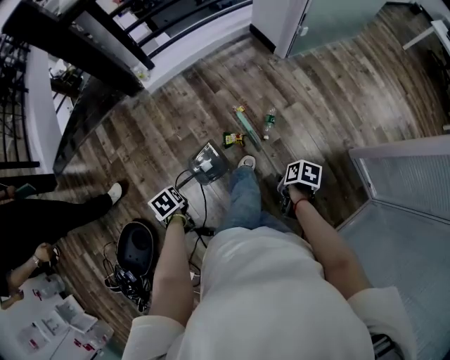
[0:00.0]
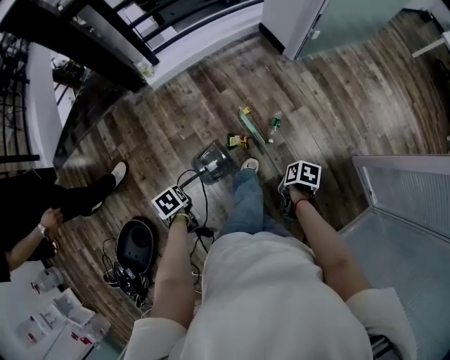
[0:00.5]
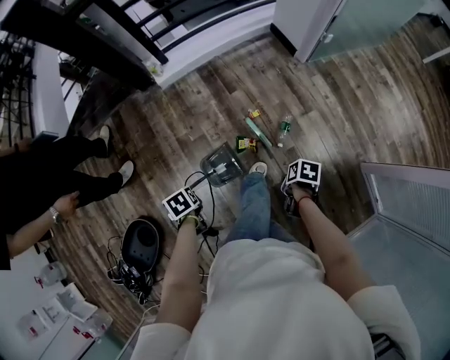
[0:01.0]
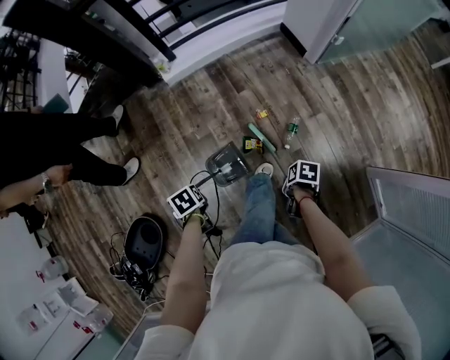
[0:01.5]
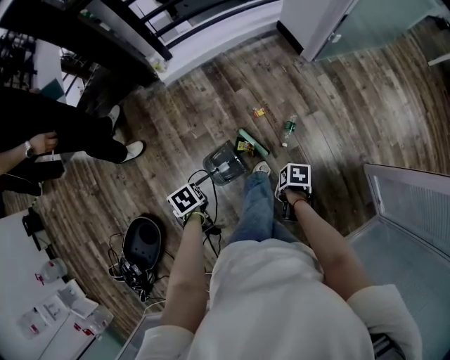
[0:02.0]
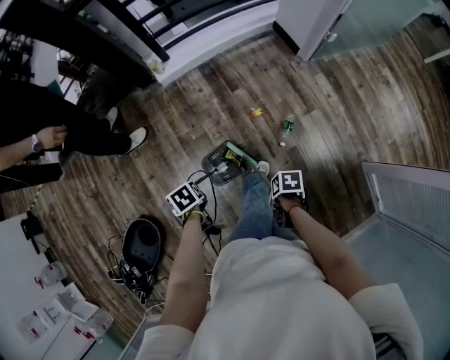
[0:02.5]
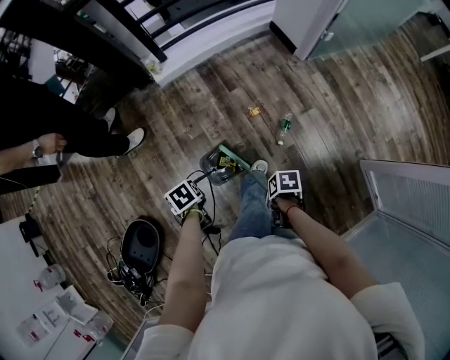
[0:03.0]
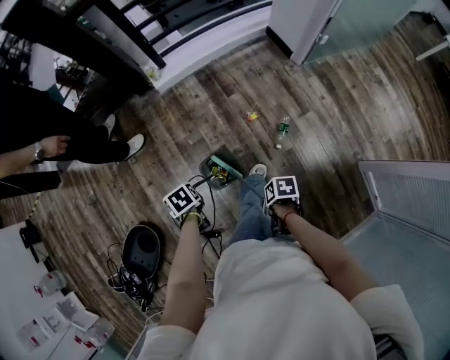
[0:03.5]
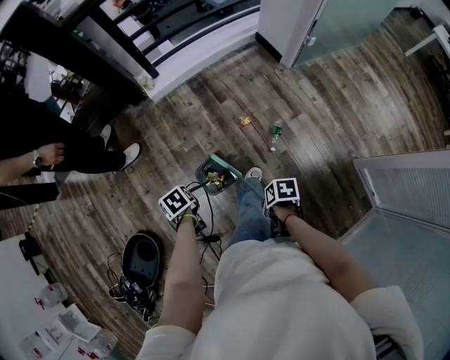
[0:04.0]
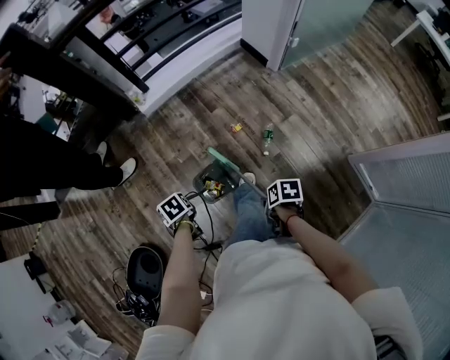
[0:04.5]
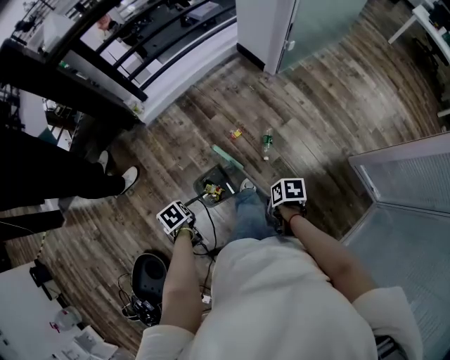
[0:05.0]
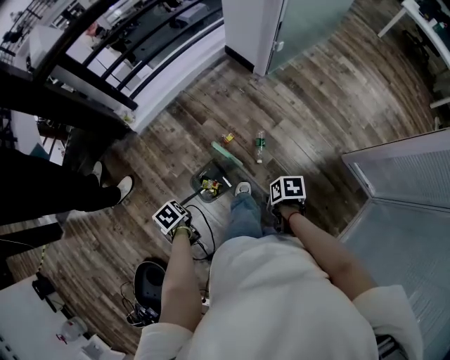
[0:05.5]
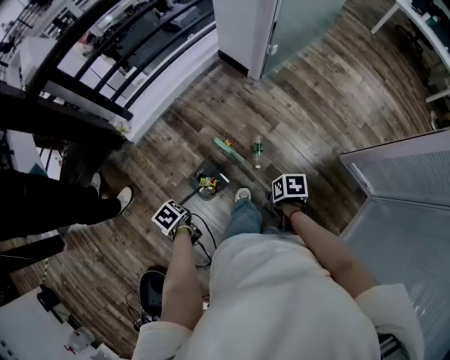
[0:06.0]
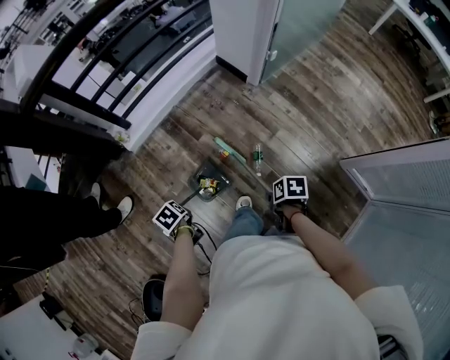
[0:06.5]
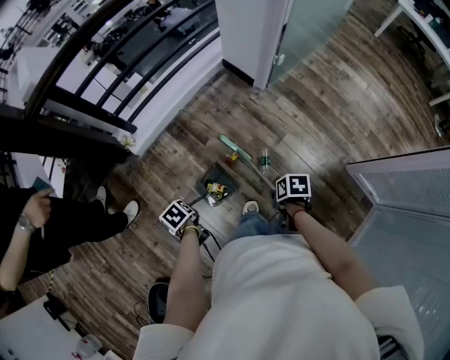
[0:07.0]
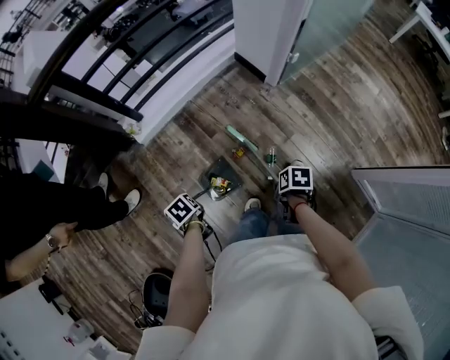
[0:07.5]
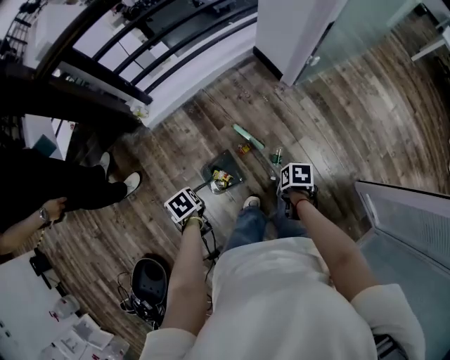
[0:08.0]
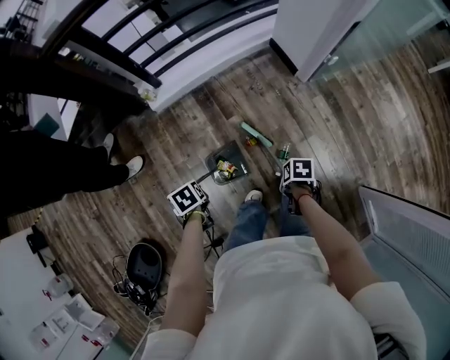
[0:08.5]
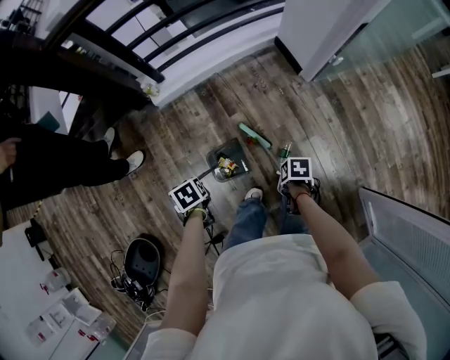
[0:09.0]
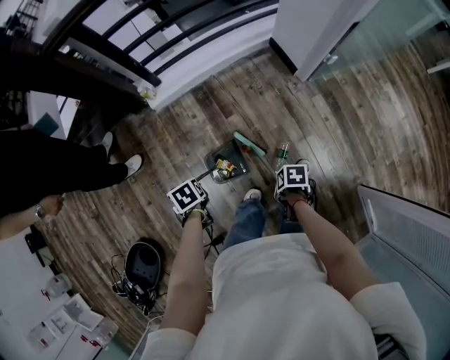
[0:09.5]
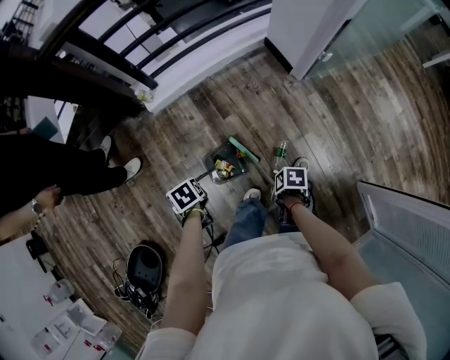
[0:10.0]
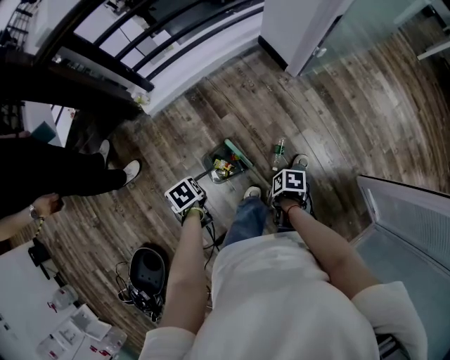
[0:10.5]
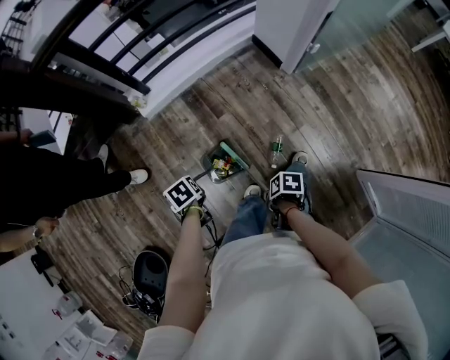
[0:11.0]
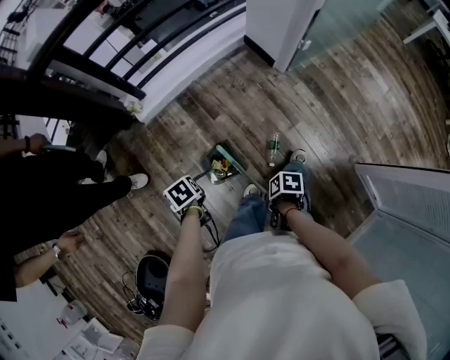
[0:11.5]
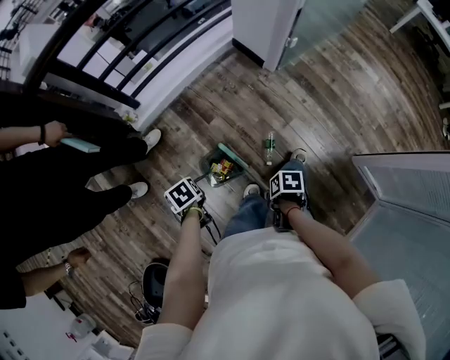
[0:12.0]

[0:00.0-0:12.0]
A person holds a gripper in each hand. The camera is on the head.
0:00.0 to 0:02.0: The left gripper shifts by roughly 10 cm.
0:04.0 to 0:06.0: The left gripper moves about 15 cm.
0:06.0 to 0:08.0: The left gripper changes place by some 10 cm.

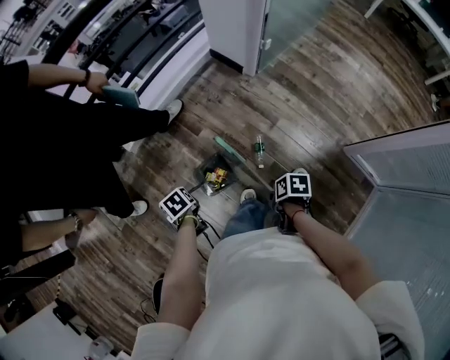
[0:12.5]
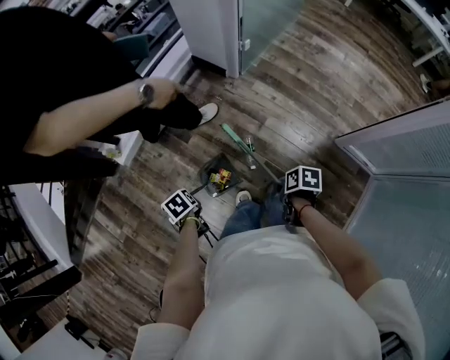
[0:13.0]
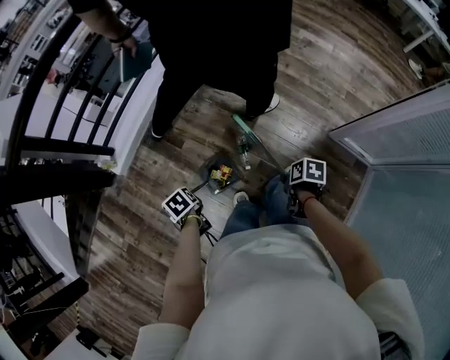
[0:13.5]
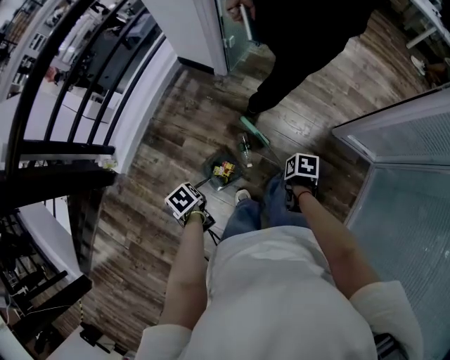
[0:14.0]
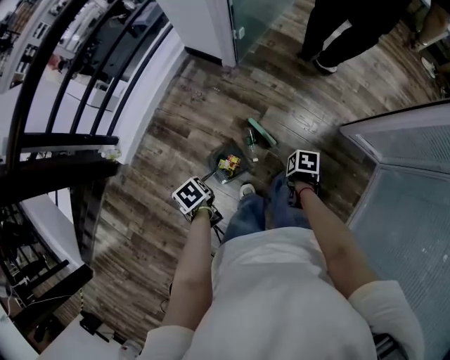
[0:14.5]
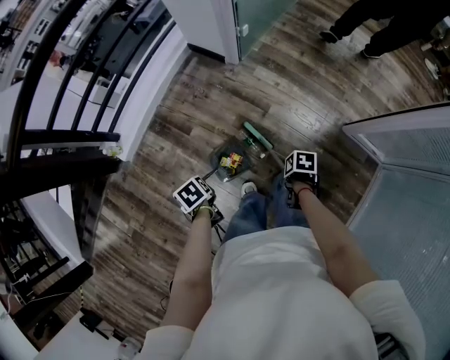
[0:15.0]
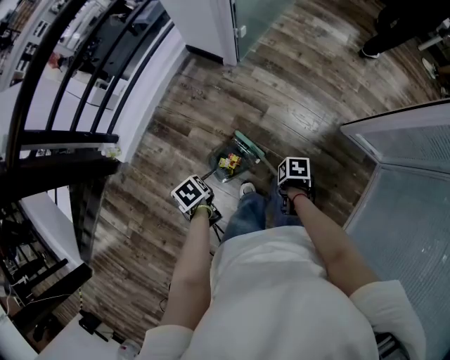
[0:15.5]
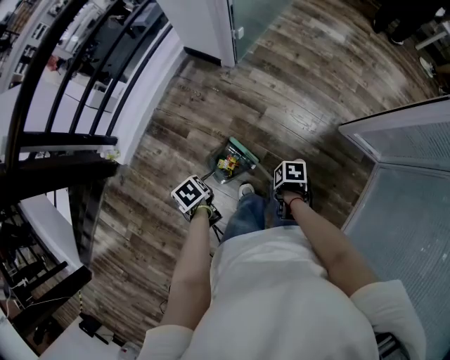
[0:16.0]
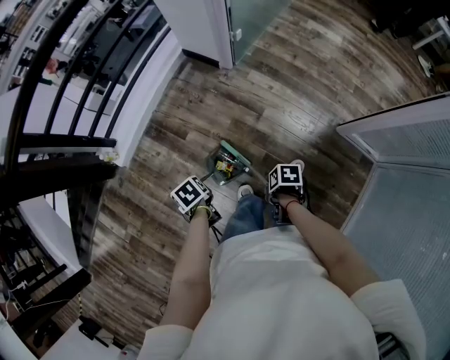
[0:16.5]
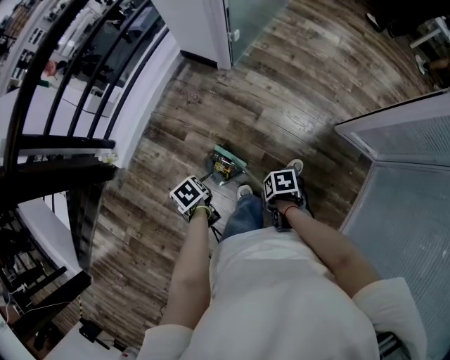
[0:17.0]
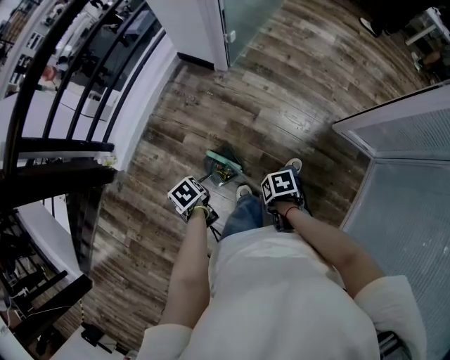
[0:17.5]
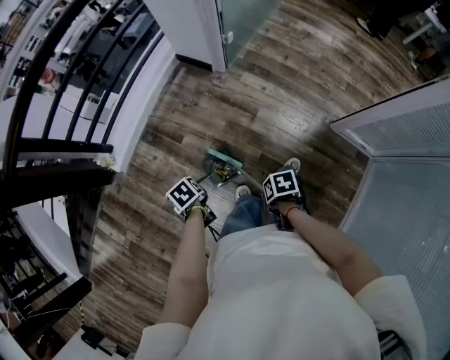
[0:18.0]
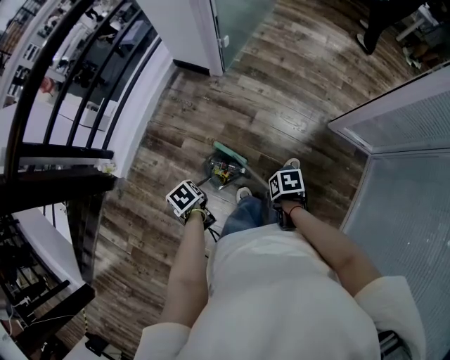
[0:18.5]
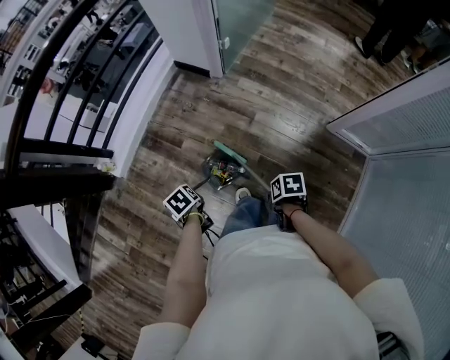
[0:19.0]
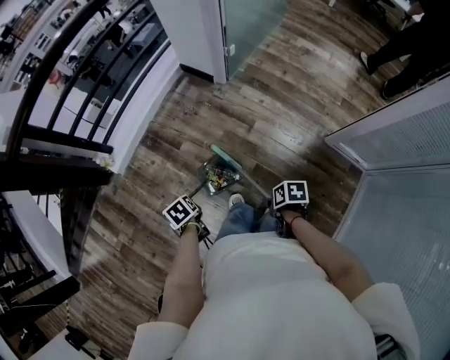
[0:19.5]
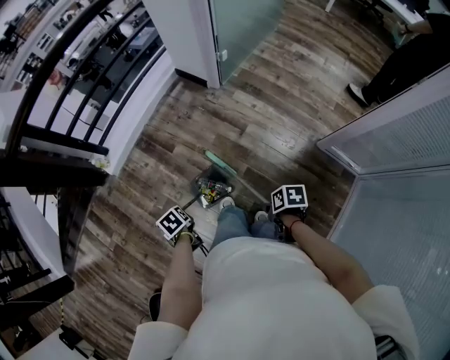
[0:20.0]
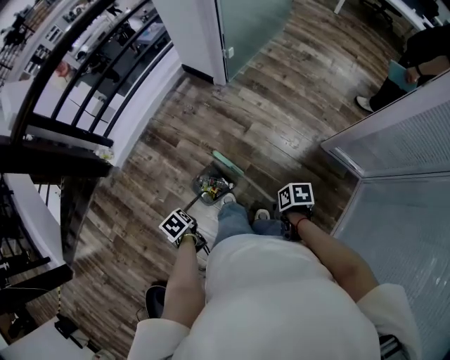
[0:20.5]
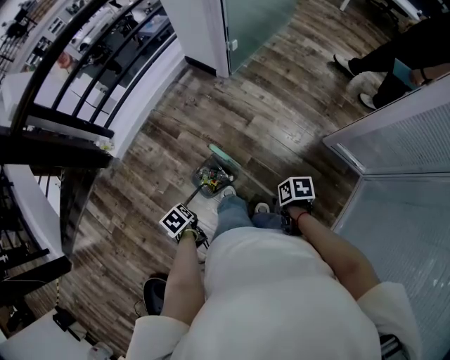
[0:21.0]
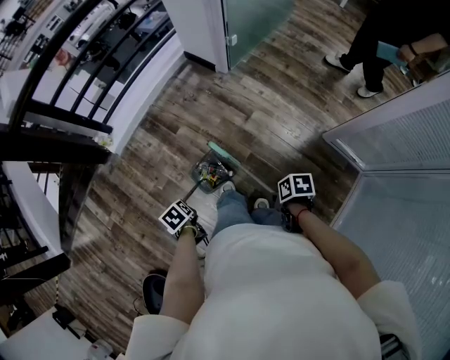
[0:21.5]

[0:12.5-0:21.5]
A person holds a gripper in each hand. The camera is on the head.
0:12.5 to 0:14.5: The left gripper changes place by approximately 15 cm.
0:17.0 to 0:19.5: The left gripper changes place by some 10 cm.
0:19.5 to 0:21.5: The left gripper ends up approximately 10 cm from where it was.

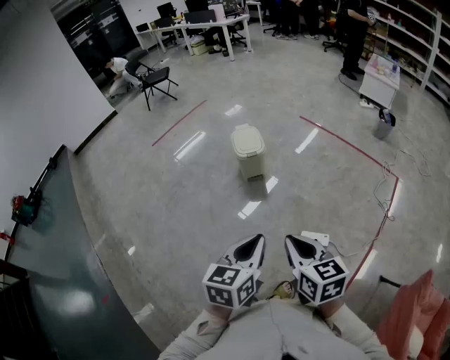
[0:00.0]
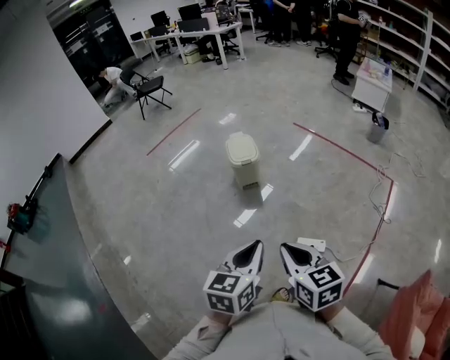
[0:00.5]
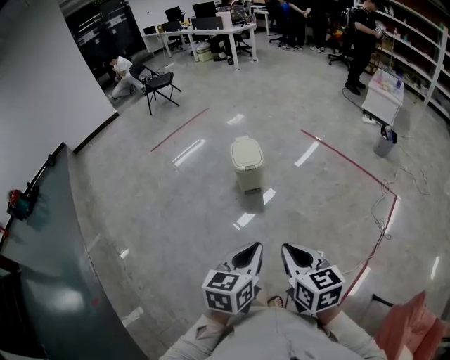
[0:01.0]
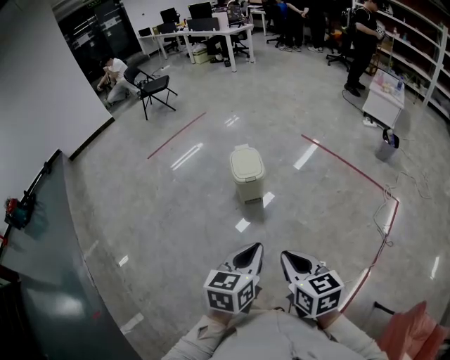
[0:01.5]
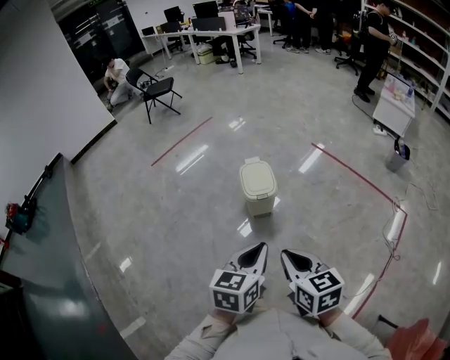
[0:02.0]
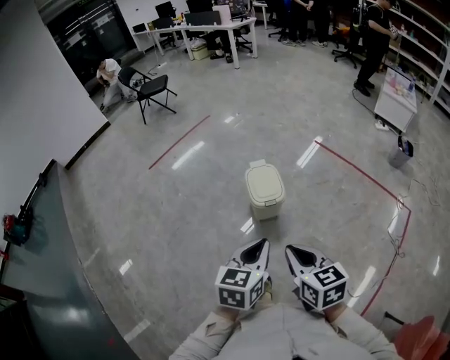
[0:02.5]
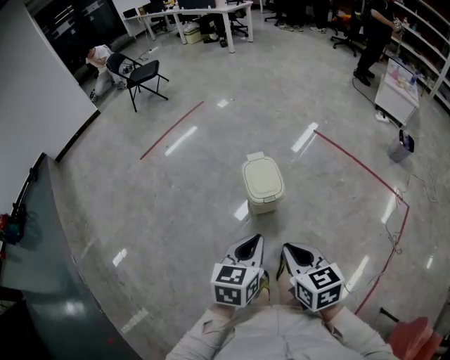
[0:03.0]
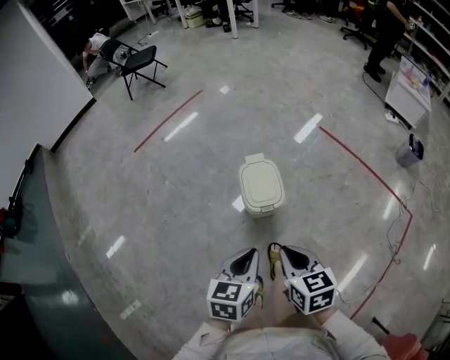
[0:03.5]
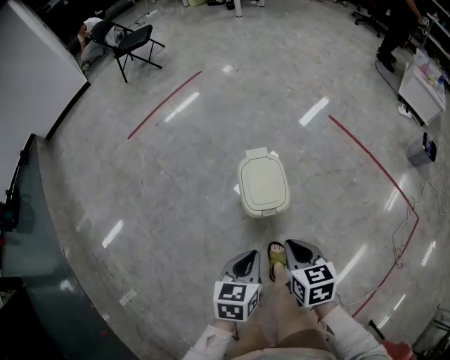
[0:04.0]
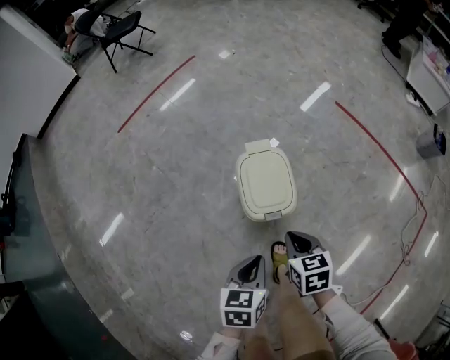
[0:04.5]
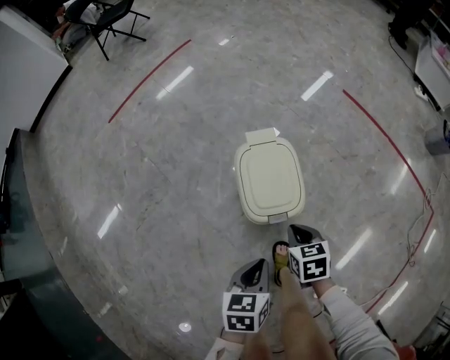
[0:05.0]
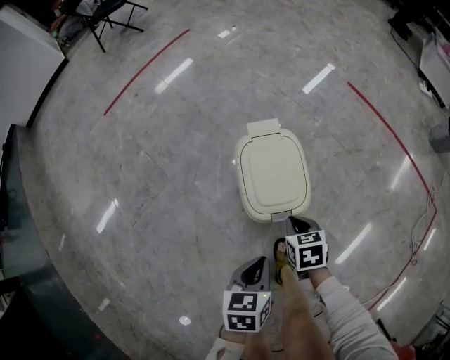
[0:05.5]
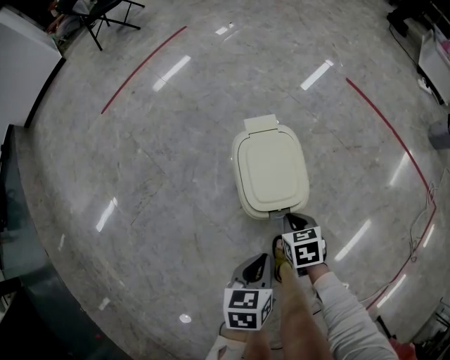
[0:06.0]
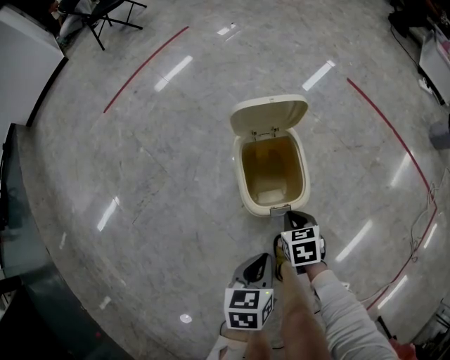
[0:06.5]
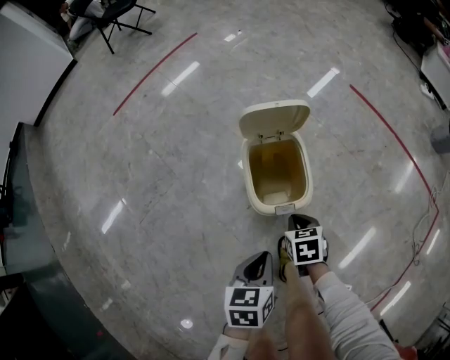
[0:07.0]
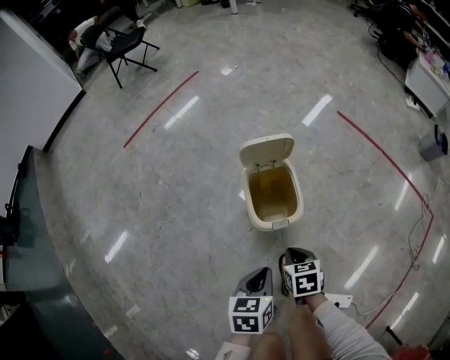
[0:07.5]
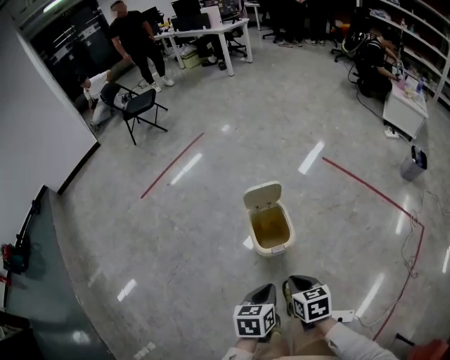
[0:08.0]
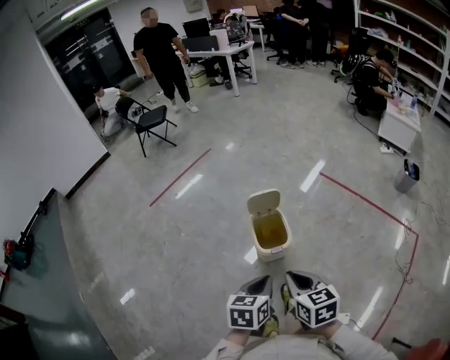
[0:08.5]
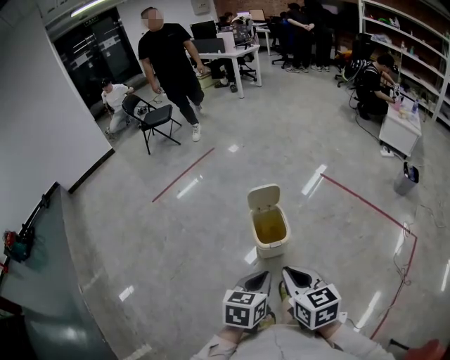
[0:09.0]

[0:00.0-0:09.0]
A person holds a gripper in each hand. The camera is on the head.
0:00.0 to 0:02.0: The two grippers go approximately 25 cm forward.
0:02.0 to 0:04.5: Both grippers travel together forward and downward, approximately 40 cm. The right gripper swivels approximately 20 degrees. The left gripper changes its angle by about 30 degrees.
0:04.5 to 0:07.0: The left gripper travels downward by roughly 10 cm. The right gripper travels downward by about 15 cm.
0:07.0 to 0:09.0: The grippers both shift upward and backward by about 40 cm. The right gripper tips its fingers upward by some 40 degrees, while the left gripper rotates some 20 degrees.
